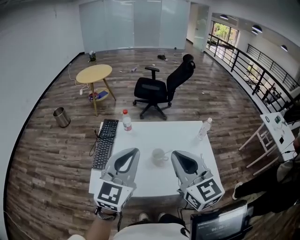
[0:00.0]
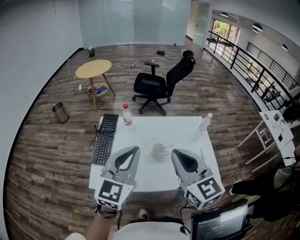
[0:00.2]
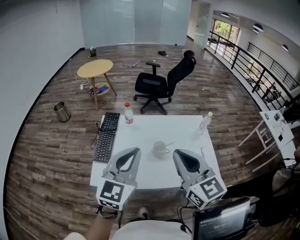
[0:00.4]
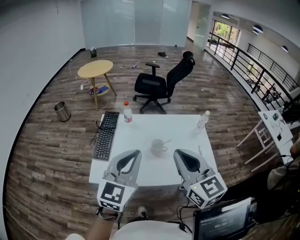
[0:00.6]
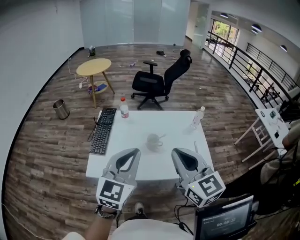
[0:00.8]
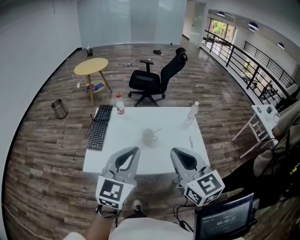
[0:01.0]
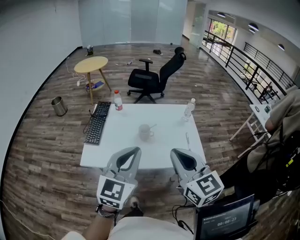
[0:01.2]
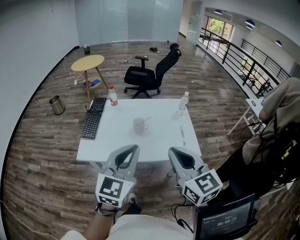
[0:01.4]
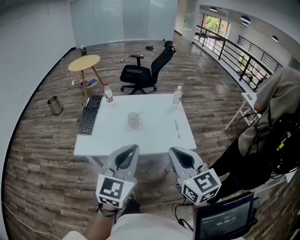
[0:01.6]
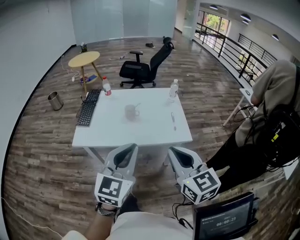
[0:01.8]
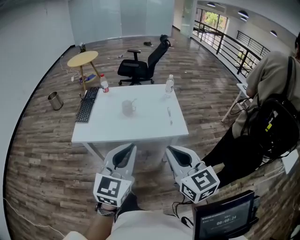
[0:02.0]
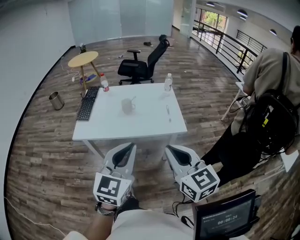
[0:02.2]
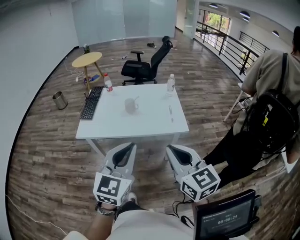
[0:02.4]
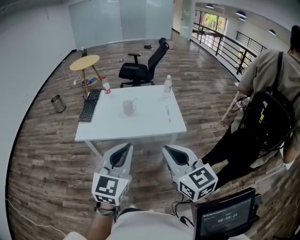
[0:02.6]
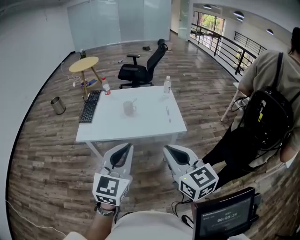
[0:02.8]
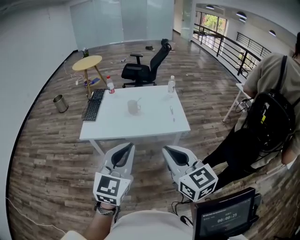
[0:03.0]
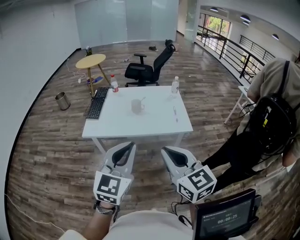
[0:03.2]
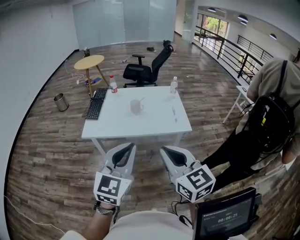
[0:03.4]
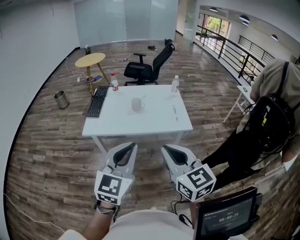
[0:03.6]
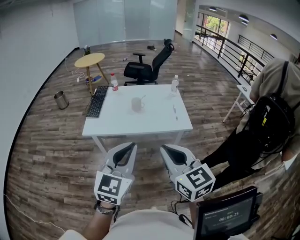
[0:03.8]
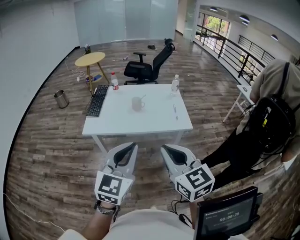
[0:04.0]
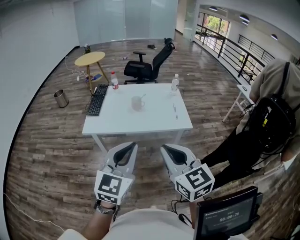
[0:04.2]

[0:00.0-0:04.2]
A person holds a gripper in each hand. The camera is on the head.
0:00.0 to 0:01.4: The grippers both shift backward and to the right by about 20 cm.
0:01.4 to 0:02.8: The grippers both shift backward by some 15 cm.
0:02.8 to 0:04.2: The right gripper travels to the left by approximately 5 cm.

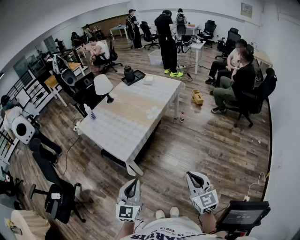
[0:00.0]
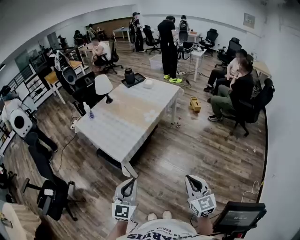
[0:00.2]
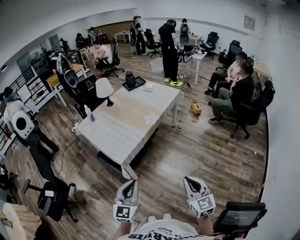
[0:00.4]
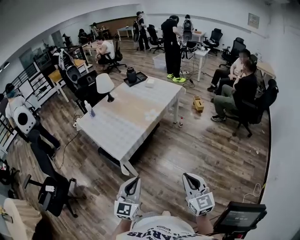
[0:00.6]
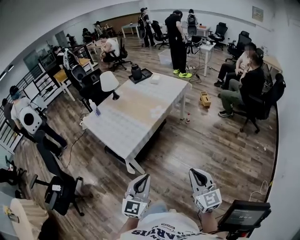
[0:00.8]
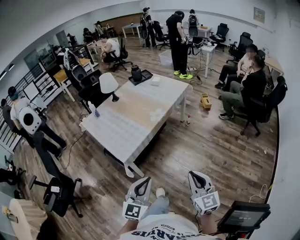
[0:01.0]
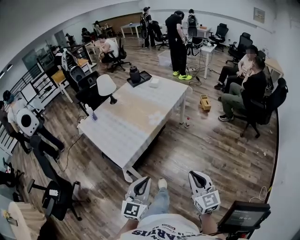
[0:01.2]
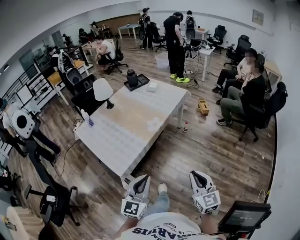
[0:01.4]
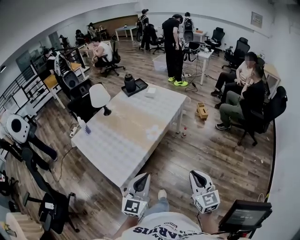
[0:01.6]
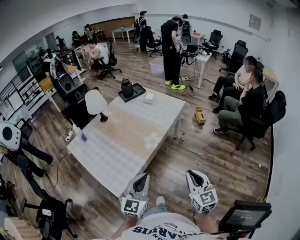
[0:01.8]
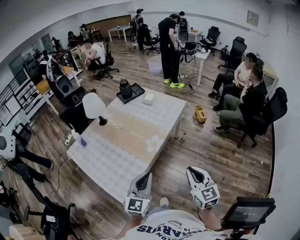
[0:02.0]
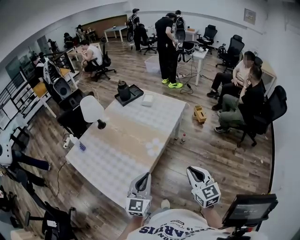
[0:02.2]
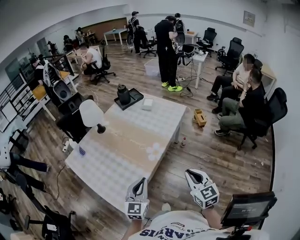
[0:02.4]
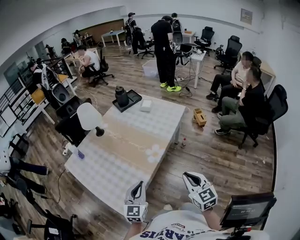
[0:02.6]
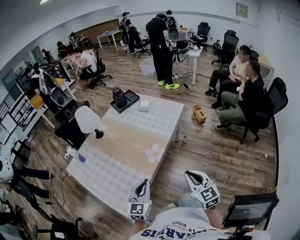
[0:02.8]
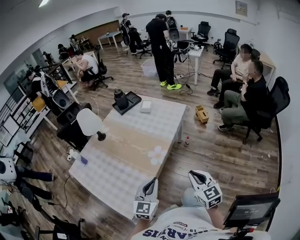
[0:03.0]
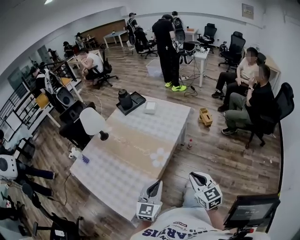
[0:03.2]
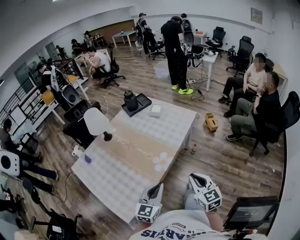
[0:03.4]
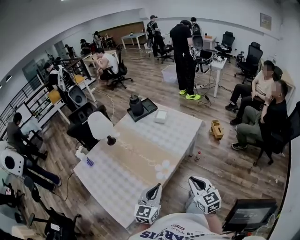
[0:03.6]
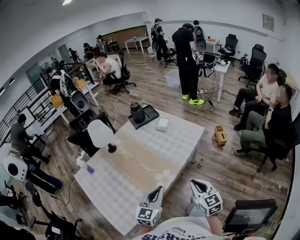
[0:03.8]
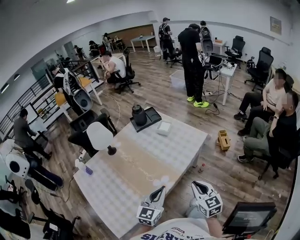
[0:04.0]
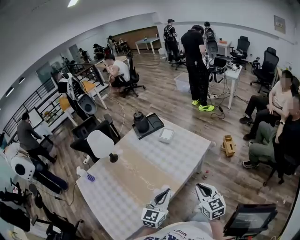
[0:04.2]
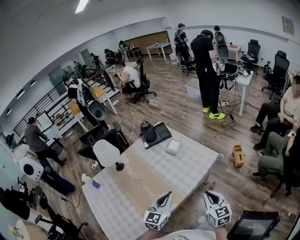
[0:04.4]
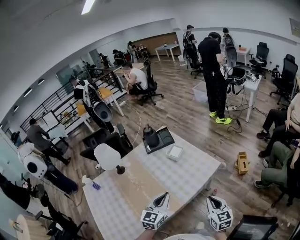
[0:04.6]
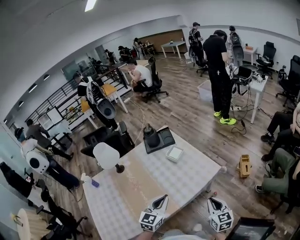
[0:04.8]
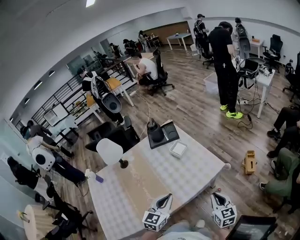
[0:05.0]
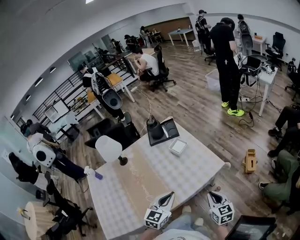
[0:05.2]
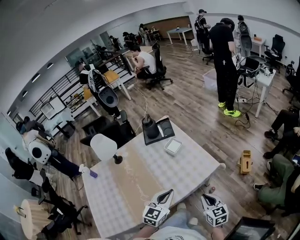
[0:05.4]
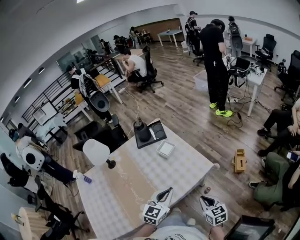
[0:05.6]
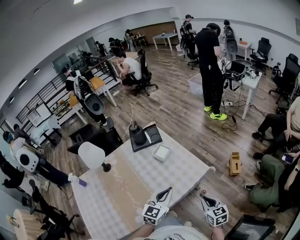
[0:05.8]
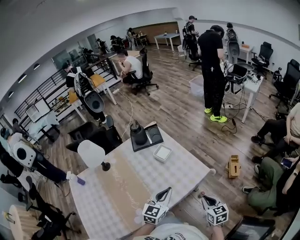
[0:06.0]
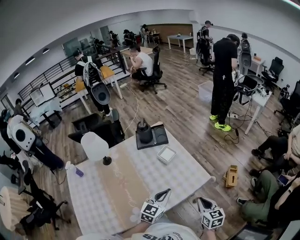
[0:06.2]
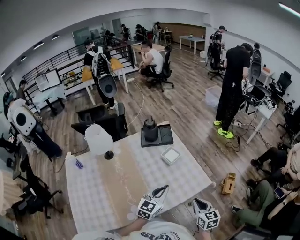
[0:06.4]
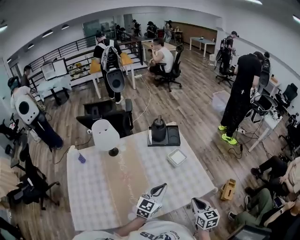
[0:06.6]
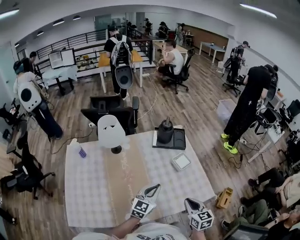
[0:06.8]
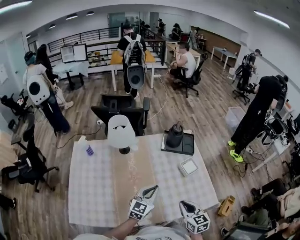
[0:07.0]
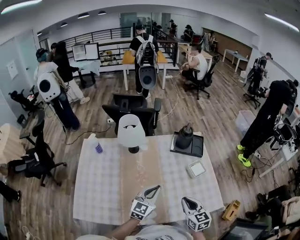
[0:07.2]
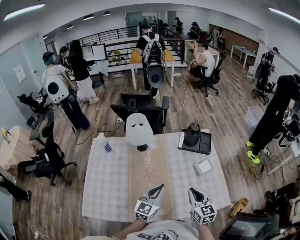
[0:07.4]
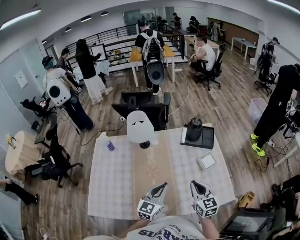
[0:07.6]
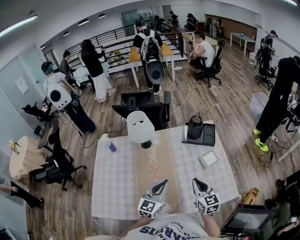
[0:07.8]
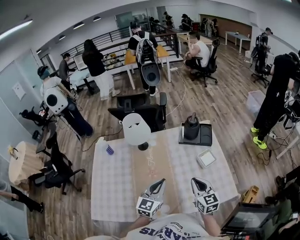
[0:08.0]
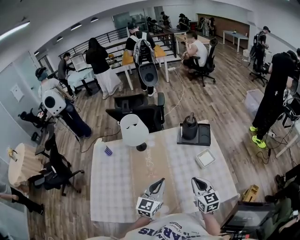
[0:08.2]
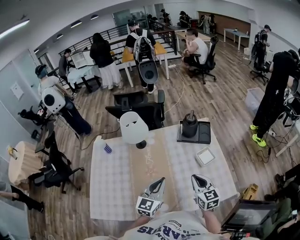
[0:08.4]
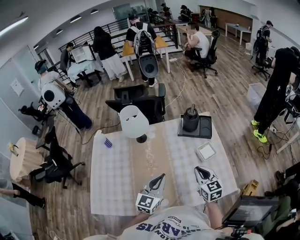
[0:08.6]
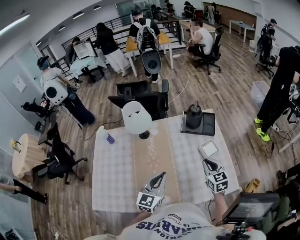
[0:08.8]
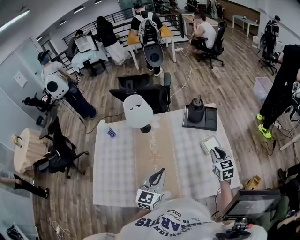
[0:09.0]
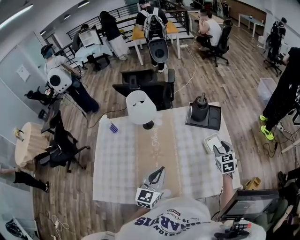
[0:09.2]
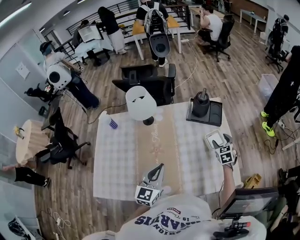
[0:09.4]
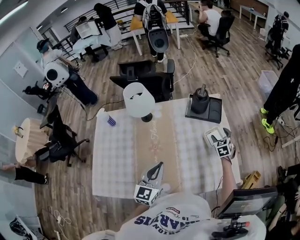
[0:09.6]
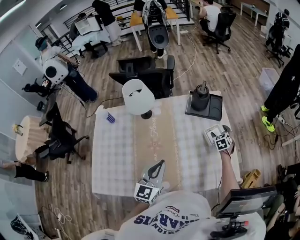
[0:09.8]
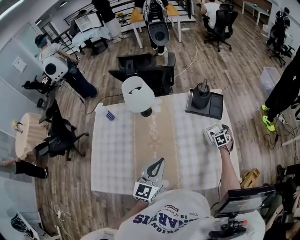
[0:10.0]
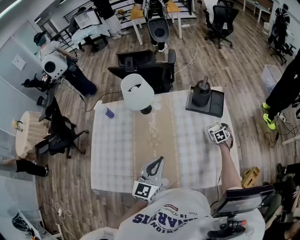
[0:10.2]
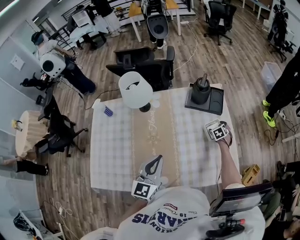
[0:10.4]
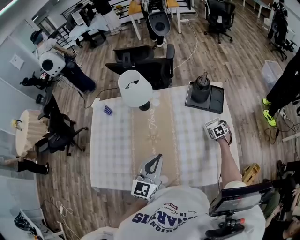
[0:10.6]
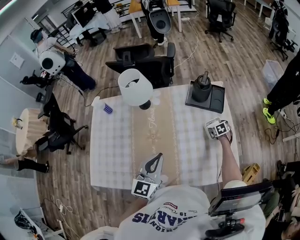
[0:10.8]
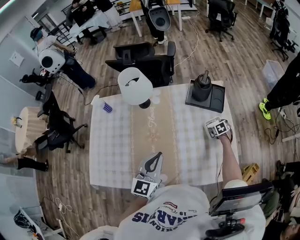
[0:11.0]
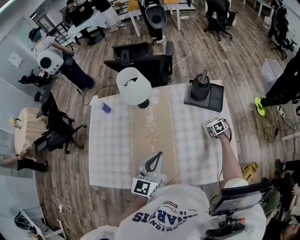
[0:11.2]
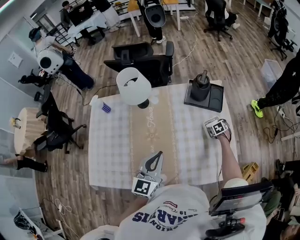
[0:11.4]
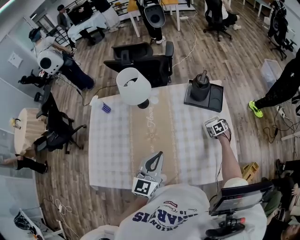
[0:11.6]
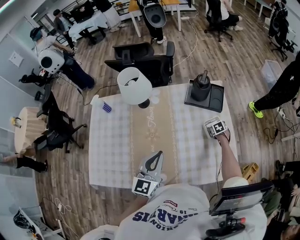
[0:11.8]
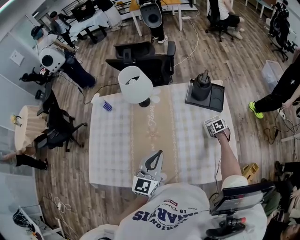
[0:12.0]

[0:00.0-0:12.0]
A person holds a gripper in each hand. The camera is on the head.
0:00.0 to 0:01.6: Both grippers move forward, some 20 cm.
0:01.6 to 0:03.0: Both grippers move forward, about 20 cm.
0:03.0 to 0:04.4: The right gripper goes about 30 cm forward. The left gripper travels forward and to the right by about 35 cm.
0:04.4 to 0:06.0: The left gripper is displaced forward and to the right by about 20 cm. Meanwhile the right gripper shifts some 20 cm forward, to the right and downward.
0:06.0 to 0:07.6: The right gripper changes place by about 35 cm, and changes its angle by about 40 degrees. The left gripper changes place by some 25 cm, and turns by roughly 30 degrees.
0:07.6 to 0:09.0: The right gripper heads forward, to the right and downward, covering about 15 cm.
0:09.0 to 0:10.4: The right gripper shifts roughly 30 cm downward and forward, tilts its fingers some 30 degrees downward, and opens.
0:10.4 to 0:12.0: There are only small adjustments of the grippers.

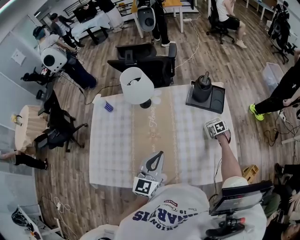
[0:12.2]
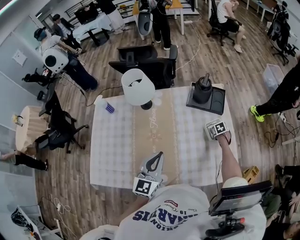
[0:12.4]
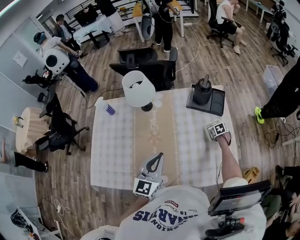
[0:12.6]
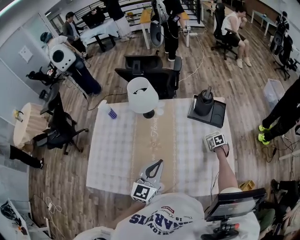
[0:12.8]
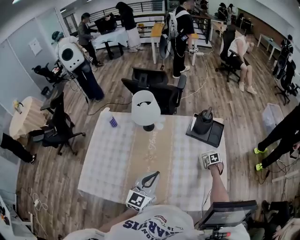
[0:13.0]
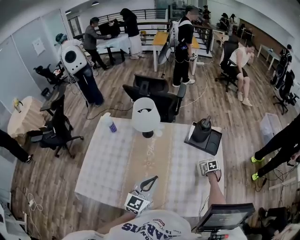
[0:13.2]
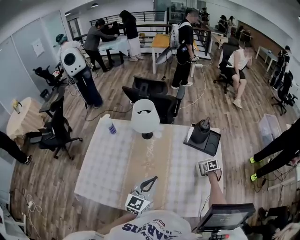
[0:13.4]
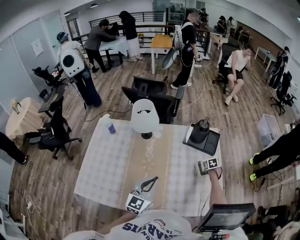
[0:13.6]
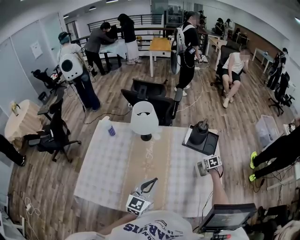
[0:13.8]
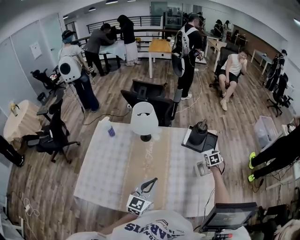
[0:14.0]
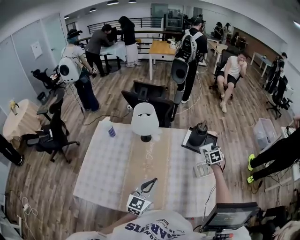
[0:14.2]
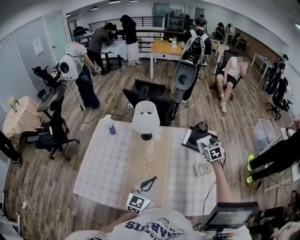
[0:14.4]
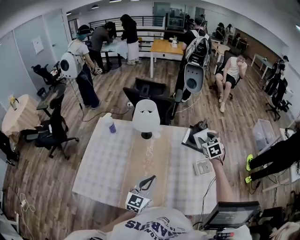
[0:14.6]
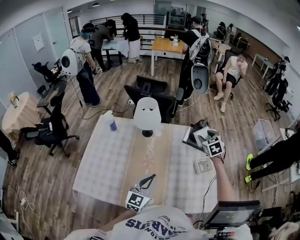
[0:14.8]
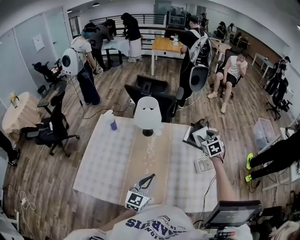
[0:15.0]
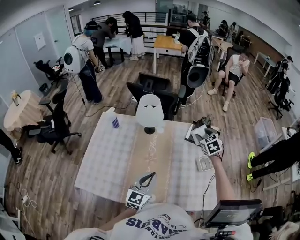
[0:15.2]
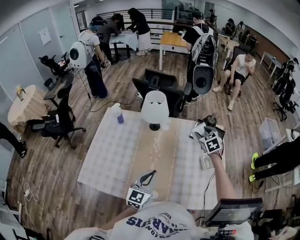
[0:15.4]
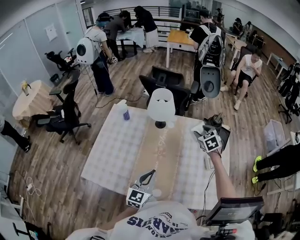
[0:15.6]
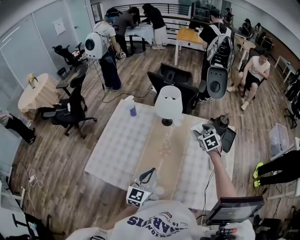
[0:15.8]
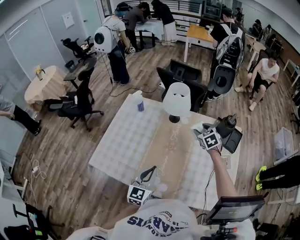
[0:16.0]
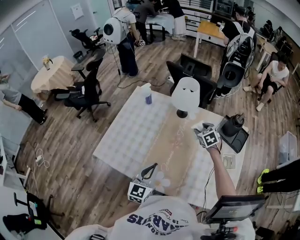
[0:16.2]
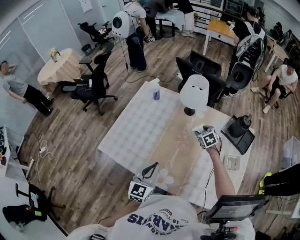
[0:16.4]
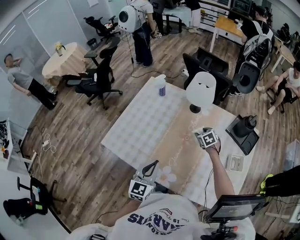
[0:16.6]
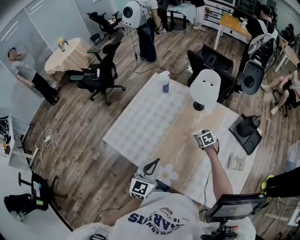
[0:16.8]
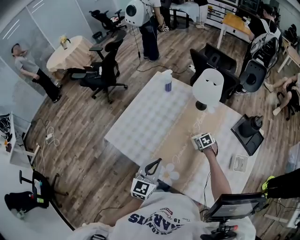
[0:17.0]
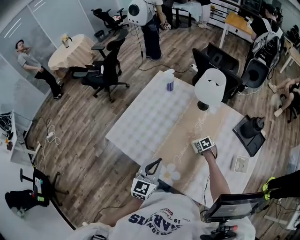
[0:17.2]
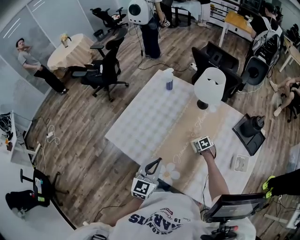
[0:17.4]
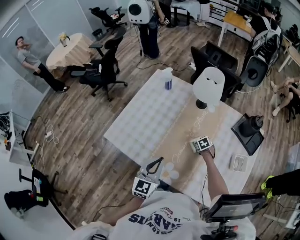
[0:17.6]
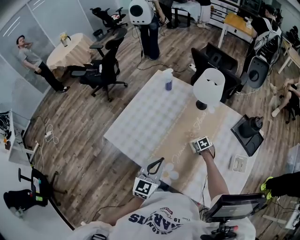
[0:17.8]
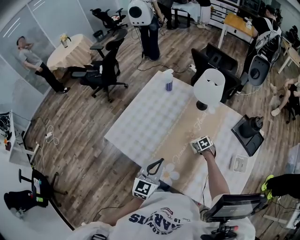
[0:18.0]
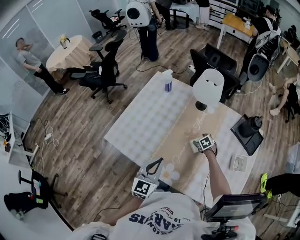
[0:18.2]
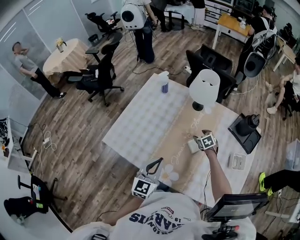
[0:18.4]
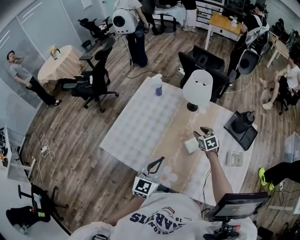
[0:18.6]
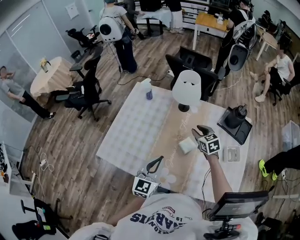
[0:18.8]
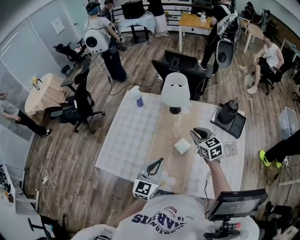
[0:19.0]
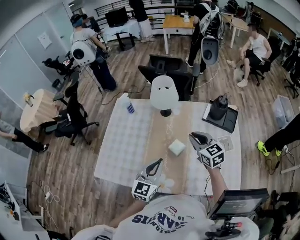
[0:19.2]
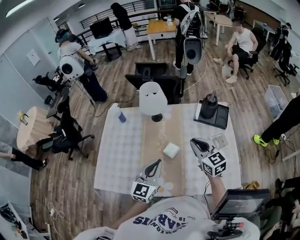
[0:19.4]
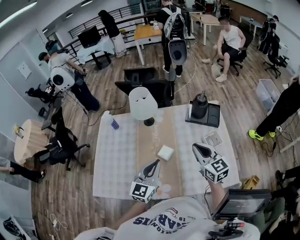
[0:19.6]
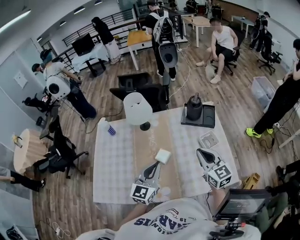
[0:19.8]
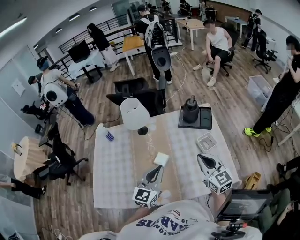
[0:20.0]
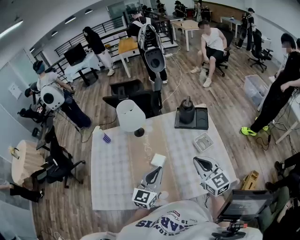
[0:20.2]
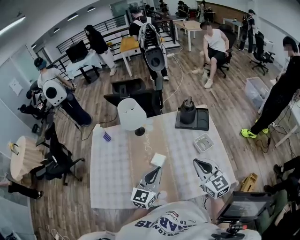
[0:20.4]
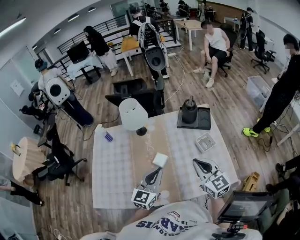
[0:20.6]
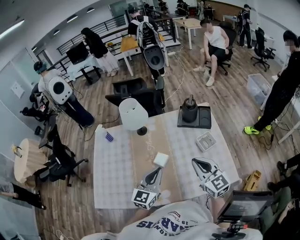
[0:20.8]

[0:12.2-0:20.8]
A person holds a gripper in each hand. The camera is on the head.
0:12.2 to 0:13.6: The right gripper moves upward, about 5 cm.
0:13.6 to 0:15.0: The right gripper travels upward and to the left by approximately 35 cm, and swivels about 30 degrees; the left gripper ends up approximately 5 cm from where it was.
0:15.0 to 0:16.6: The left gripper shifts by about 15 cm, and turns by about 30 degrees; the right gripper shifts by about 30 cm, and turns by some 30 degrees.
0:16.6 to 0:18.0: The right gripper goes some 15 cm downward.
0:18.0 to 0:19.4: The left gripper changes place by approximately 15 cm, and rotates roughly 30 degrees, while the right gripper heads upward, covering some 40 cm, points its fingers some 50 degrees further upward, and closes.
0:19.4 to 0:20.8: The left gripper travels to the right by roughly 5 cm. The right gripper travels backward and to the right by approximately 15 cm.
